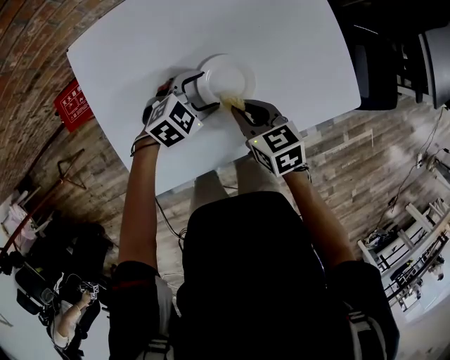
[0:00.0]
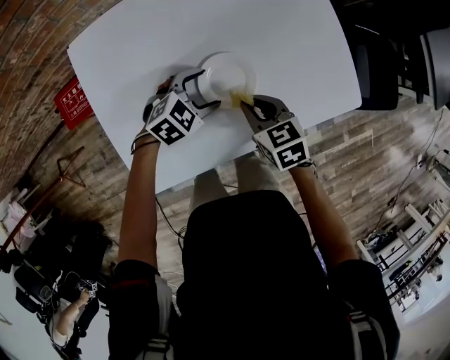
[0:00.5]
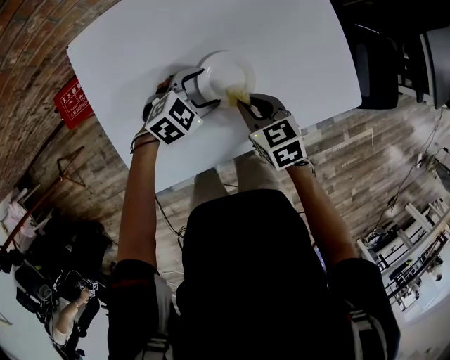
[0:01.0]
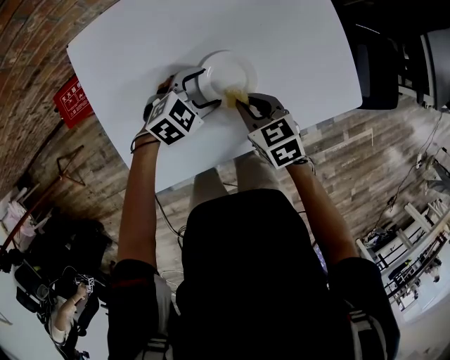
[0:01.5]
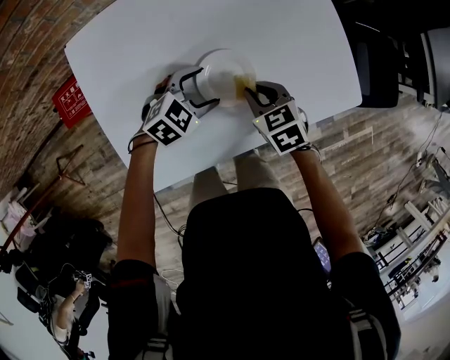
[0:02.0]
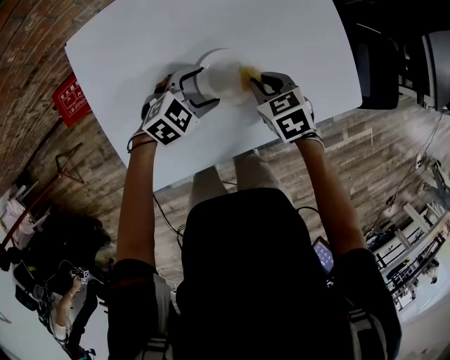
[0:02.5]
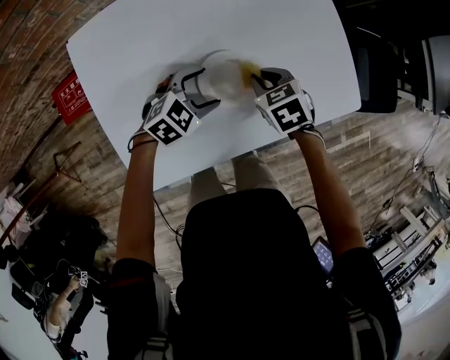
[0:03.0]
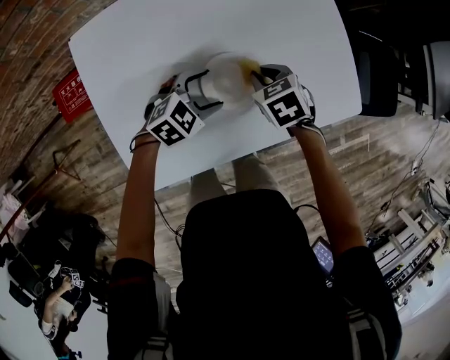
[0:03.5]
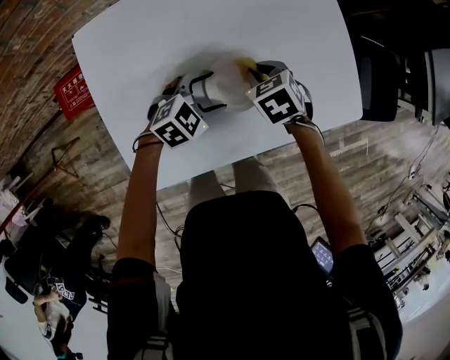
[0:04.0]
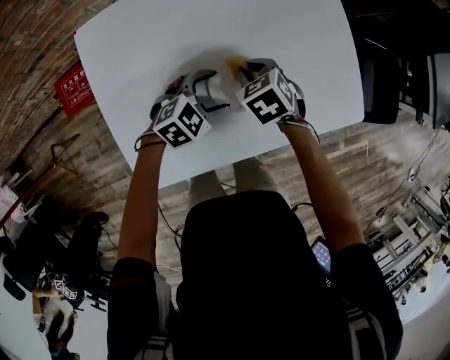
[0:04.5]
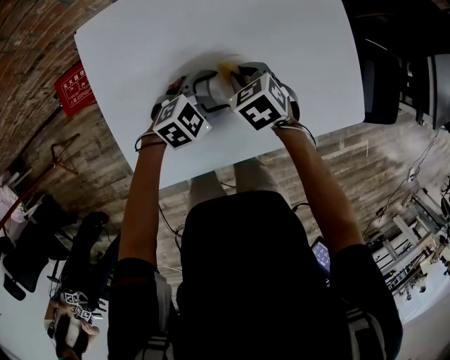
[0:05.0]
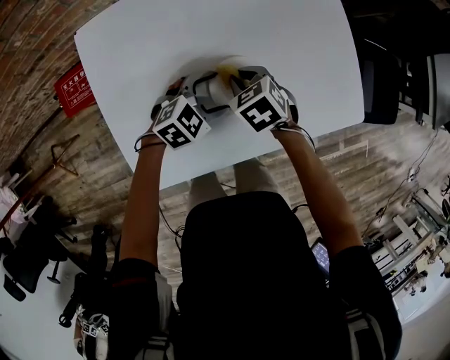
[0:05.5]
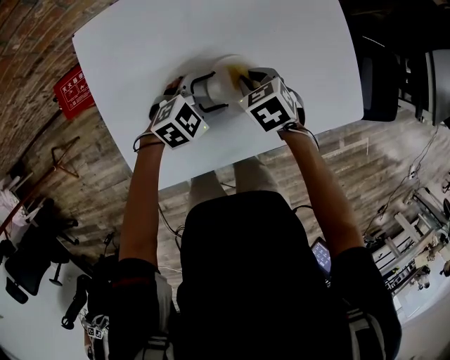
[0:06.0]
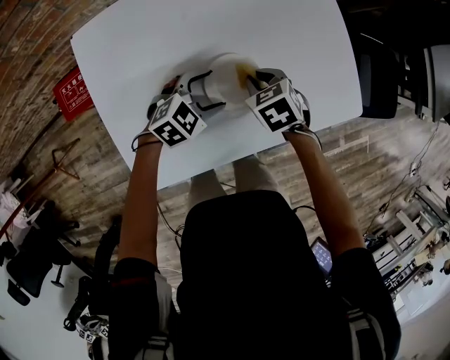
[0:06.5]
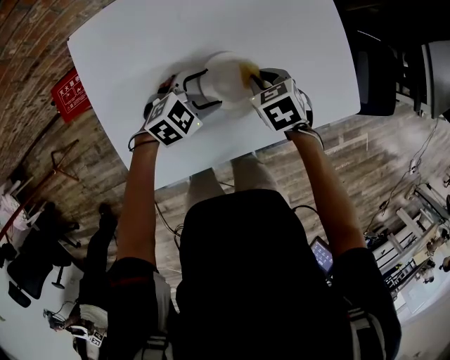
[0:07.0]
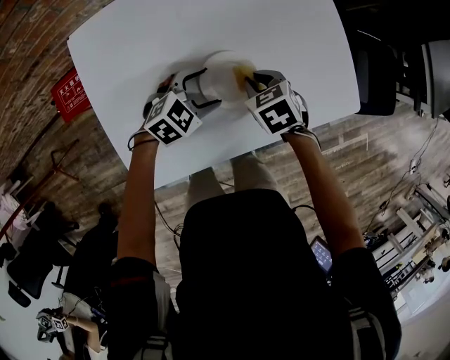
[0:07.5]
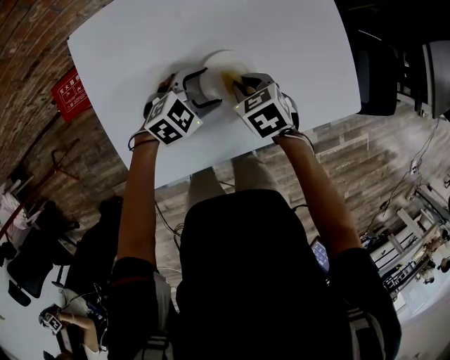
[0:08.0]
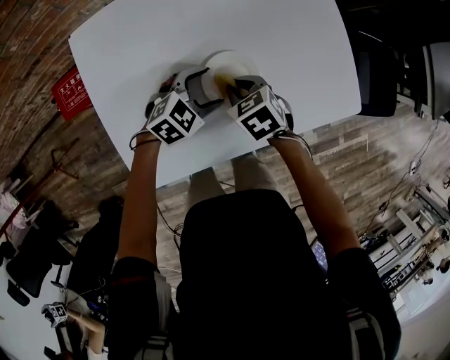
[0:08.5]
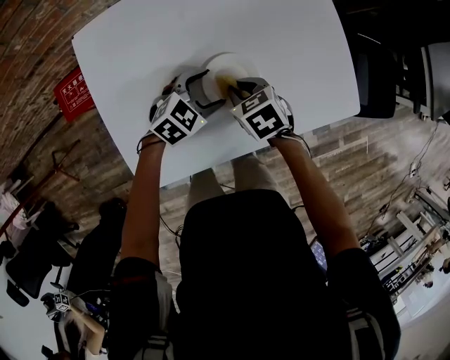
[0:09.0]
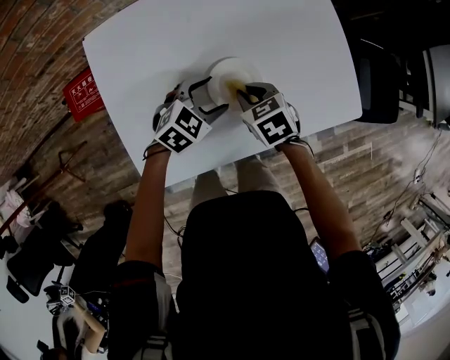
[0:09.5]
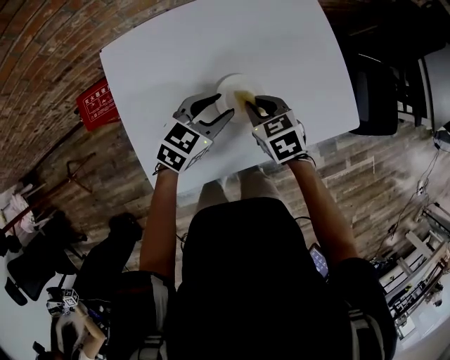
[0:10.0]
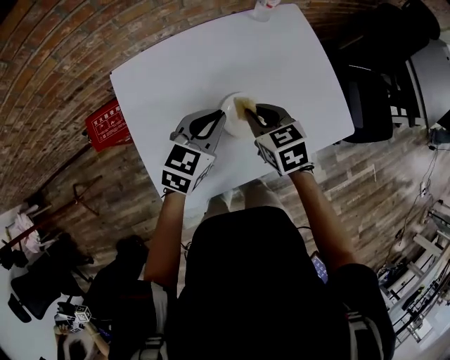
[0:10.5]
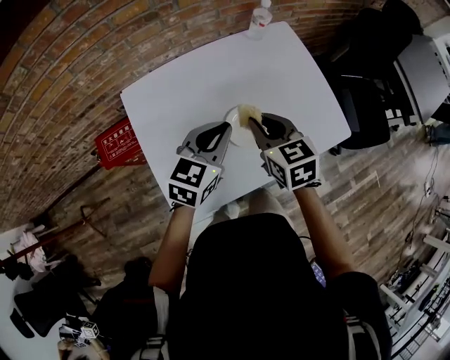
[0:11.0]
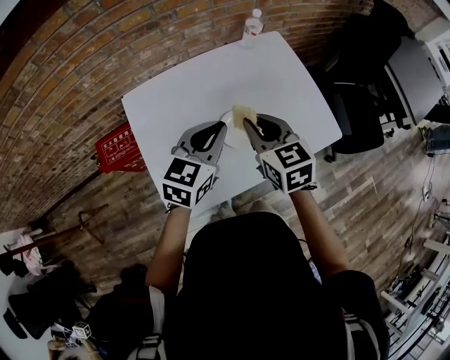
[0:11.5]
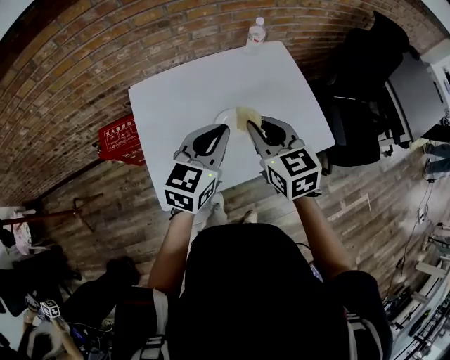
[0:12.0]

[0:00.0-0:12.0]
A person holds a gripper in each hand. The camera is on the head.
0:00.0 to 0:02.0: The right gripper moves roughly 5 cm.
0:02.0 to 0:04.0: The right gripper moves forward, about 5 cm.
0:06.0 to 0:08.0: There are only small adjustments of the grippers.
0:08.0 to 0:10.0: The right gripper is displaced upward by some 5 cm. The left gripper travels upward by approximately 10 cm, changes its angle by some 20 degrees, and closes.
0:10.0 to 0:12.0: The left gripper is displaced upward and backward by some 20 cm, swivels approximately 30 degrees, and closes its fingers. Meanwhile the right gripper heads upward, covering about 25 cm, and turns by approximately 30 degrees.

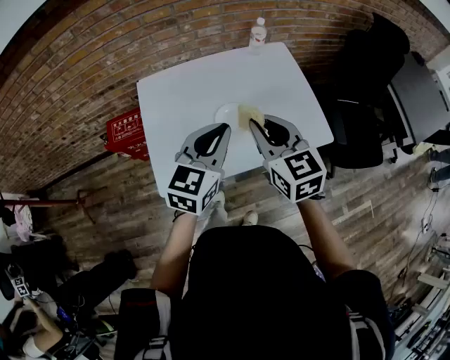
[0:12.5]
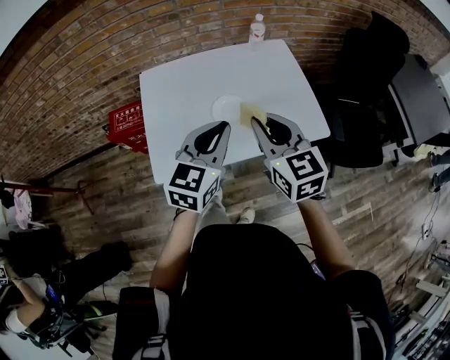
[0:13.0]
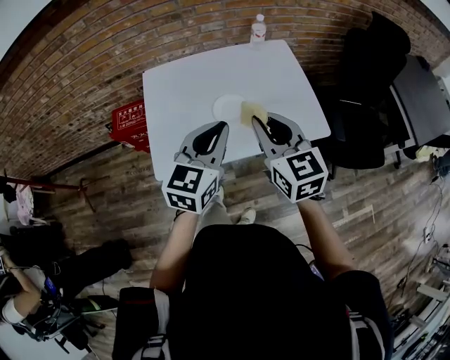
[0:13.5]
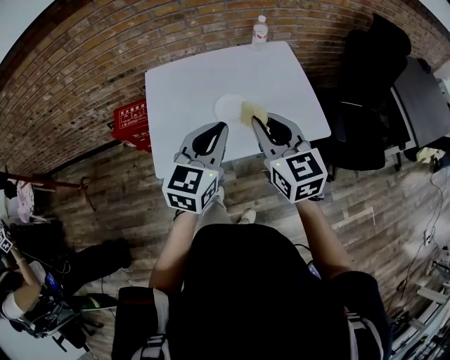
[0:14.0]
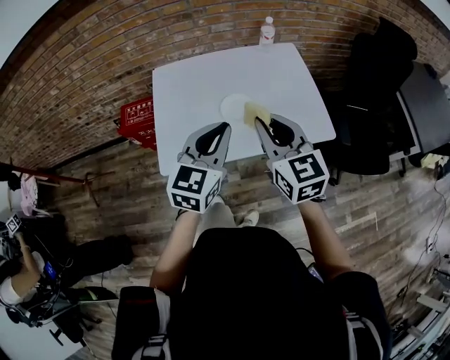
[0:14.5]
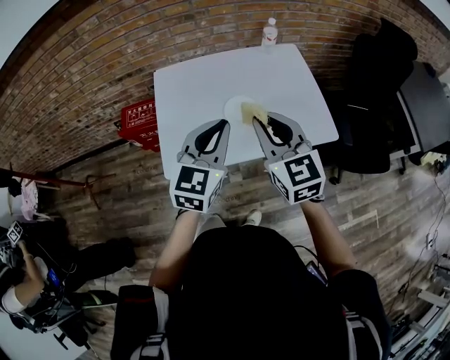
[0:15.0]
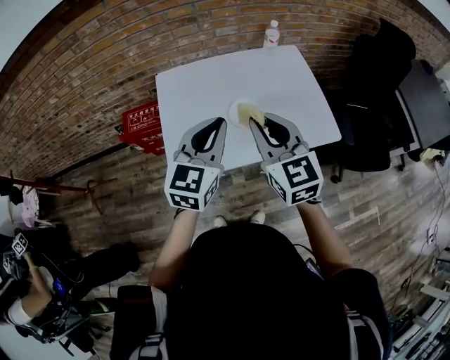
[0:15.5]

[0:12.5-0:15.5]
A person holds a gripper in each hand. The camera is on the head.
0:12.5 to 0:14.0: Both grippers move backward, about 5 cm.
0:14.0 to 0:15.5: Both grippers travel together to the left, approximately 5 cm.

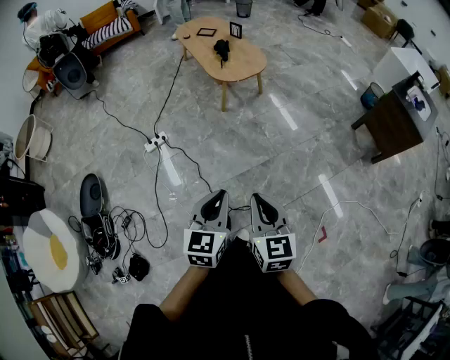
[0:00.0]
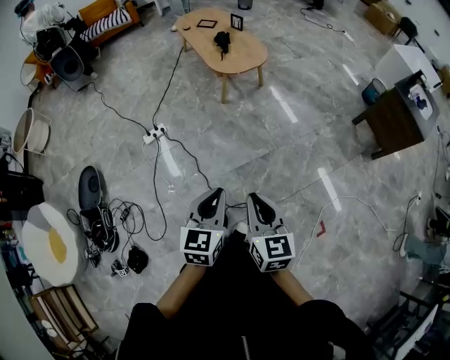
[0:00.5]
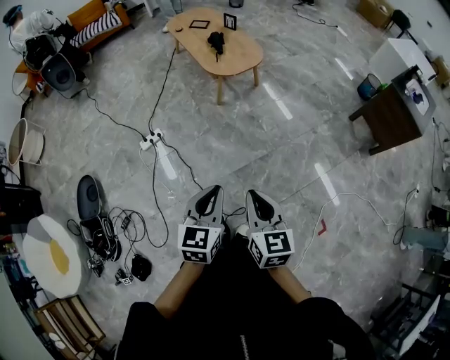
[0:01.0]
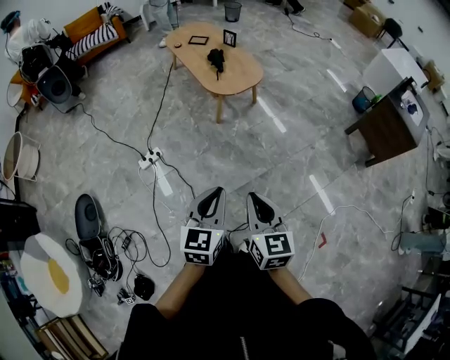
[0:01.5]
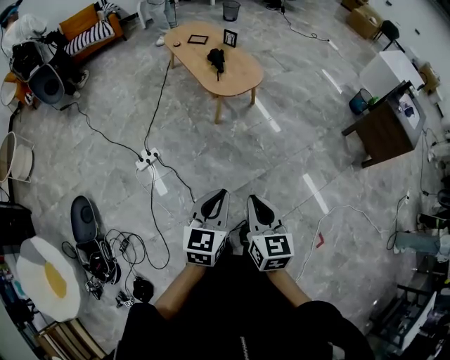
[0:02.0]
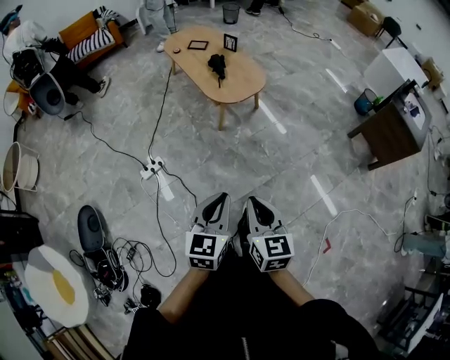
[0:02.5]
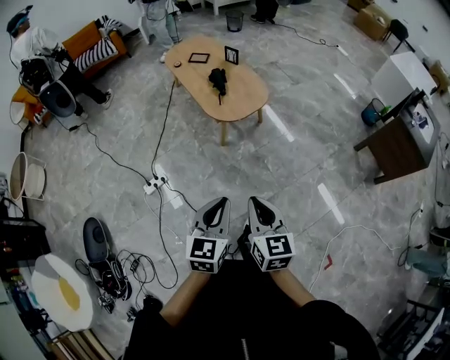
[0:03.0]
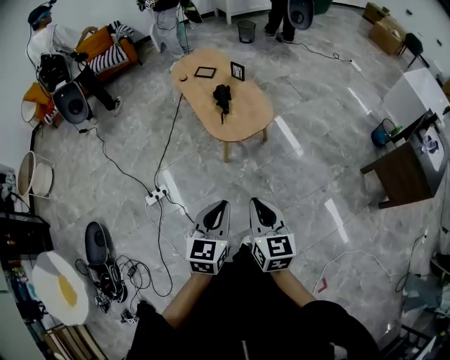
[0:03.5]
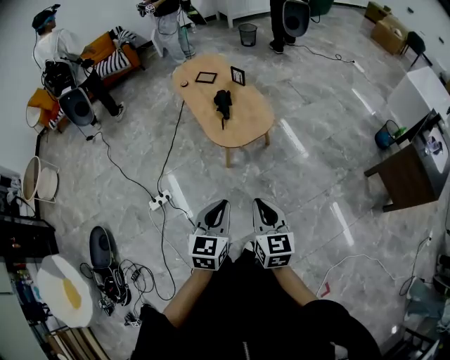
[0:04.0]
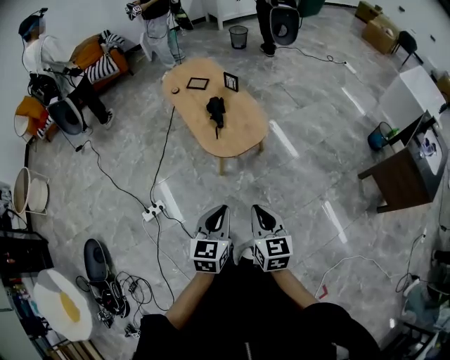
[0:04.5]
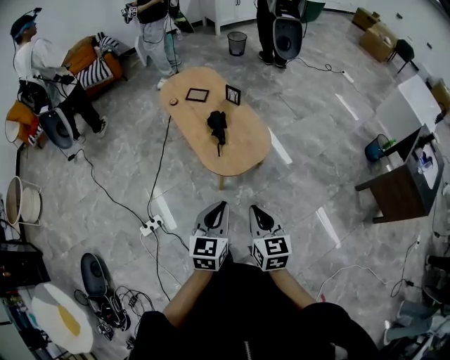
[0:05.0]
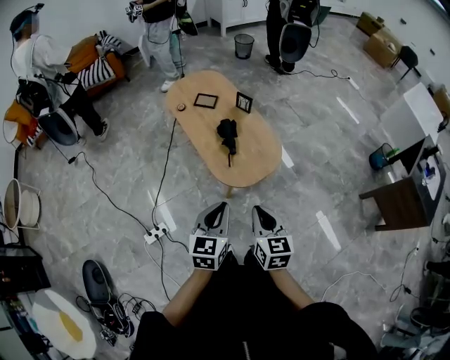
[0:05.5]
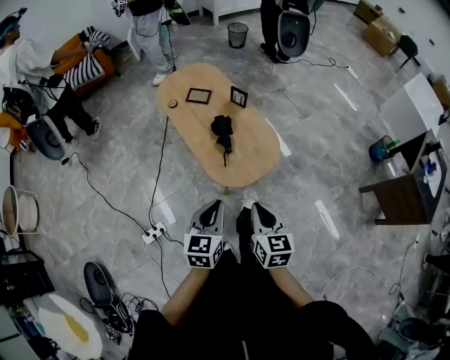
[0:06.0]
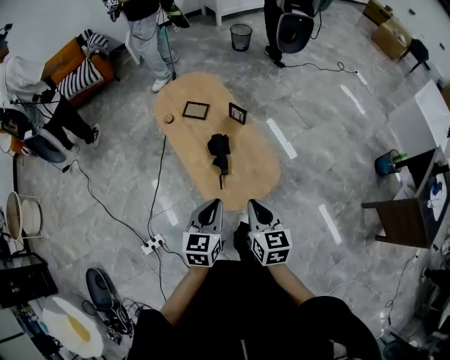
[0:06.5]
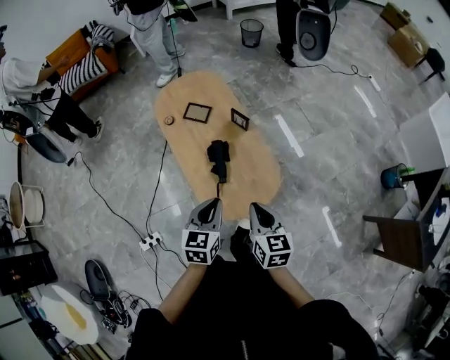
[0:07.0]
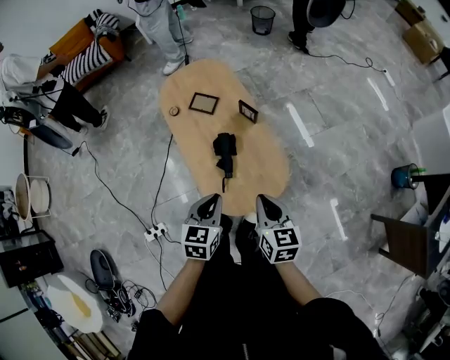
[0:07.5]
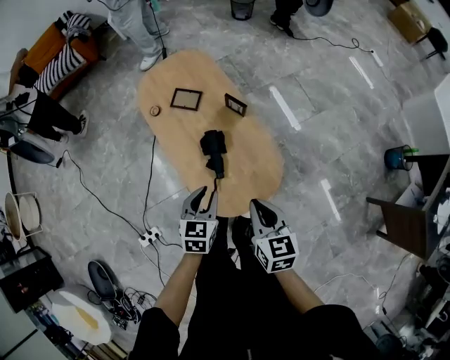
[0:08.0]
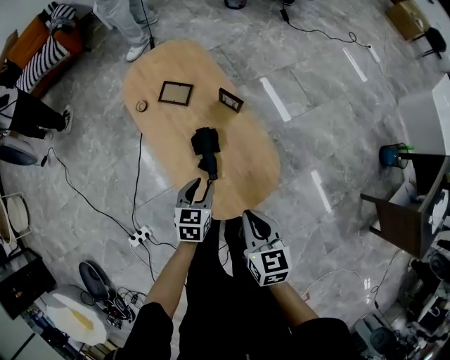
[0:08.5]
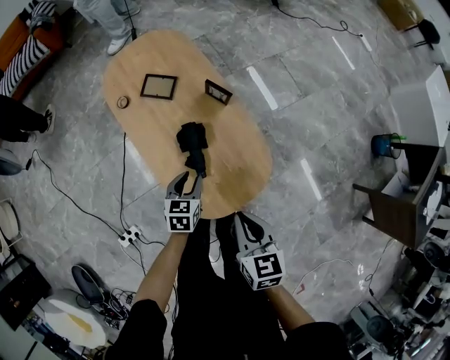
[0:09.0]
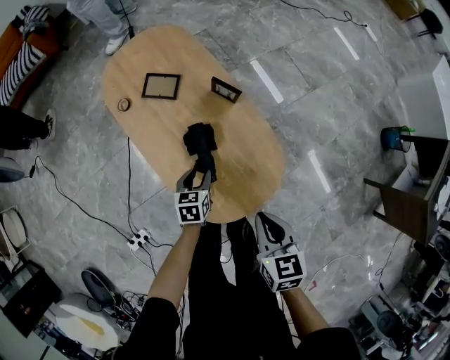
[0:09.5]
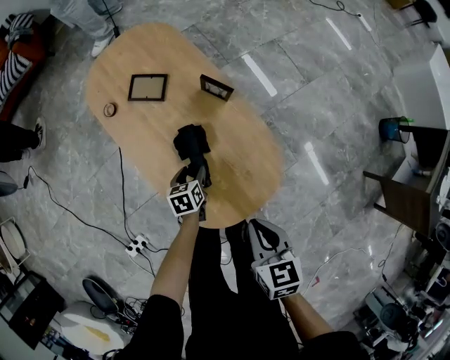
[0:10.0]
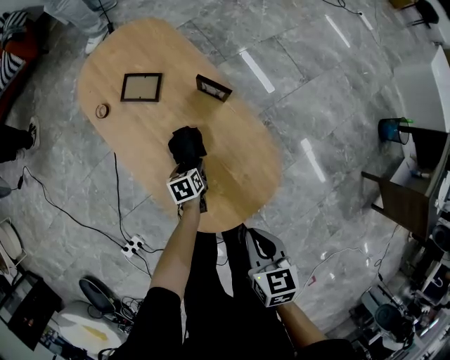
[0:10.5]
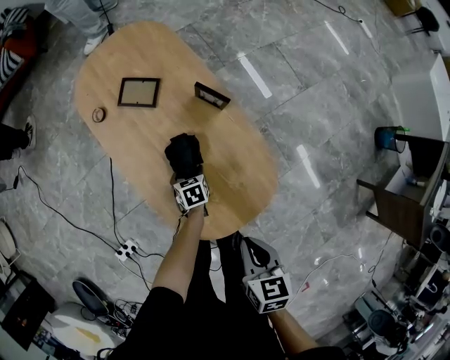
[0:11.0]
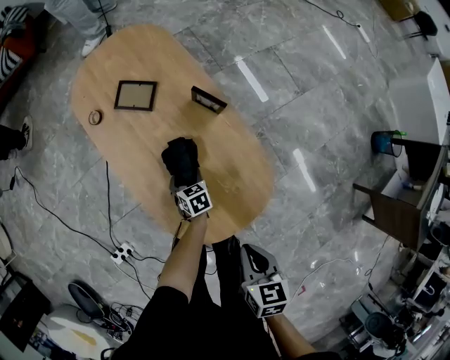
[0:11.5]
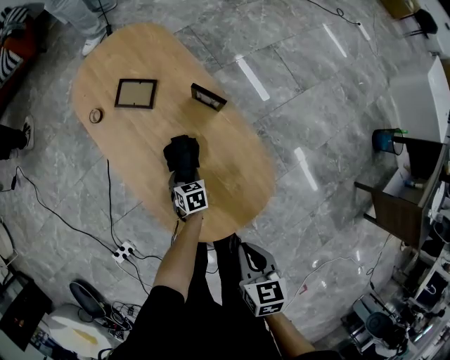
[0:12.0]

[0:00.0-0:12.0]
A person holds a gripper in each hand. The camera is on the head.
0:00.0 to 0:02.0: The two grippers go some 15 cm forward and to the left.
0:02.0 to 0:04.0: The left gripper heads forward, covering about 25 cm. Meanwhile the right gripper shifts roughly 30 cm forward and to the right.
0:04.0 to 0:06.0: The right gripper goes about 25 cm forward. The left gripper goes roughly 30 cm forward and to the left.
0:06.0 to 0:08.0: The left gripper goes about 30 cm forward and downward, while the right gripper shifts approximately 25 cm forward.
0:08.0 to 0:10.0: The left gripper shifts some 30 cm downward, rotates roughly 30 degrees, and opens up. Meanwhile the right gripper moves downward, approximately 10 cm.
0:10.0 to 0:12.0: The left gripper is displaced downward by approximately 5 cm, while the right gripper ends up roughly 5 cm from where it was.
